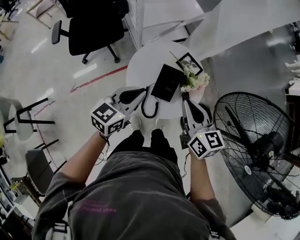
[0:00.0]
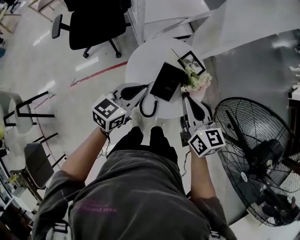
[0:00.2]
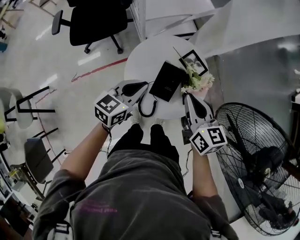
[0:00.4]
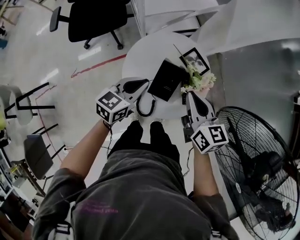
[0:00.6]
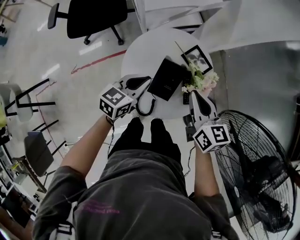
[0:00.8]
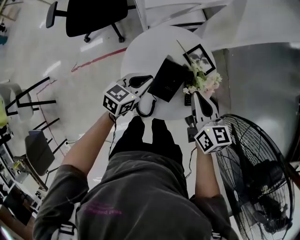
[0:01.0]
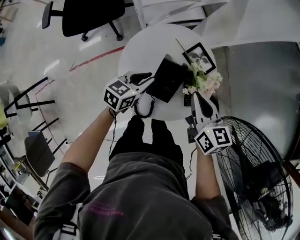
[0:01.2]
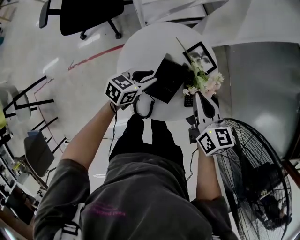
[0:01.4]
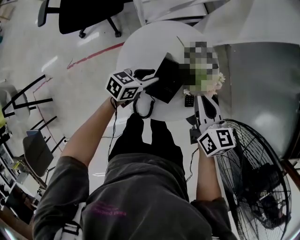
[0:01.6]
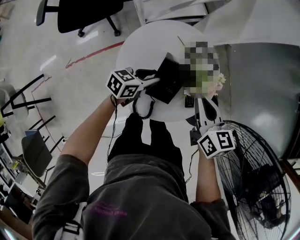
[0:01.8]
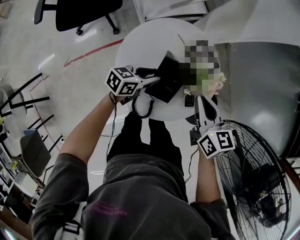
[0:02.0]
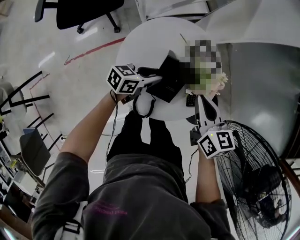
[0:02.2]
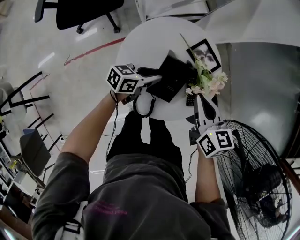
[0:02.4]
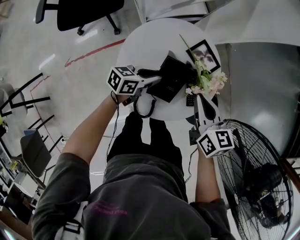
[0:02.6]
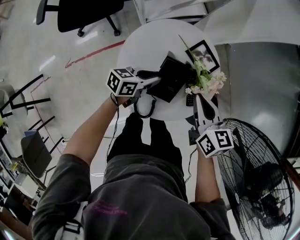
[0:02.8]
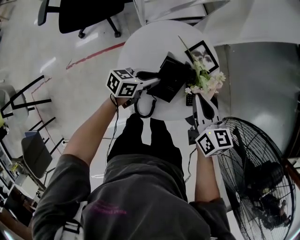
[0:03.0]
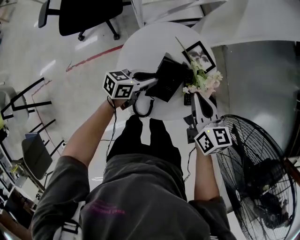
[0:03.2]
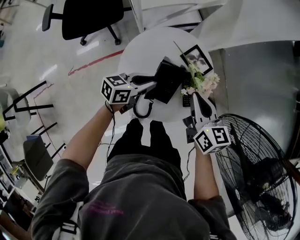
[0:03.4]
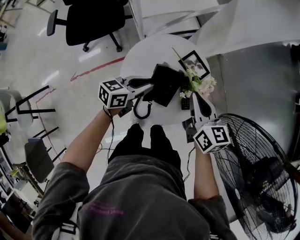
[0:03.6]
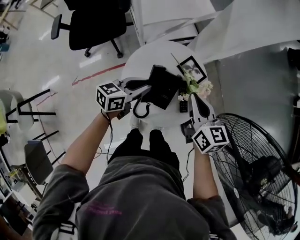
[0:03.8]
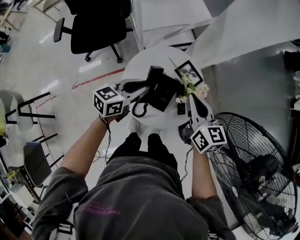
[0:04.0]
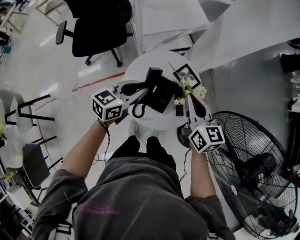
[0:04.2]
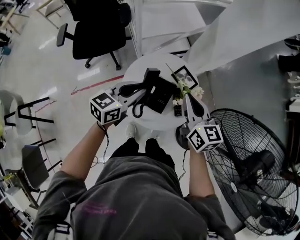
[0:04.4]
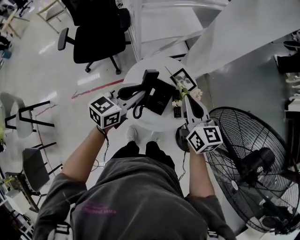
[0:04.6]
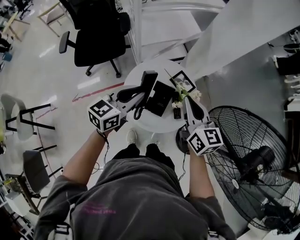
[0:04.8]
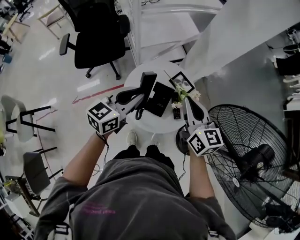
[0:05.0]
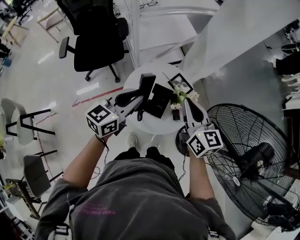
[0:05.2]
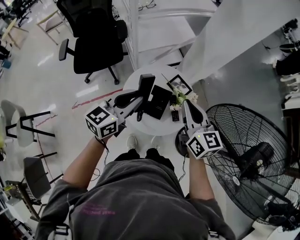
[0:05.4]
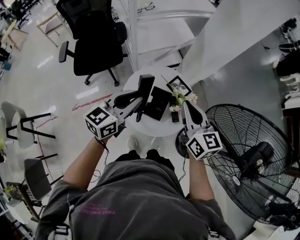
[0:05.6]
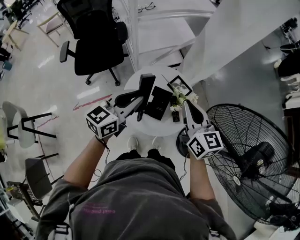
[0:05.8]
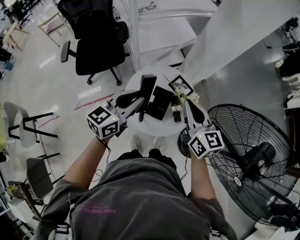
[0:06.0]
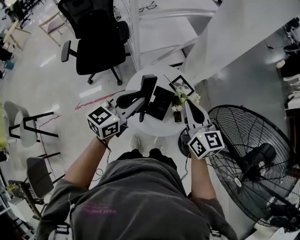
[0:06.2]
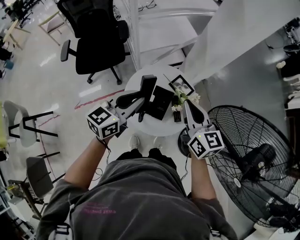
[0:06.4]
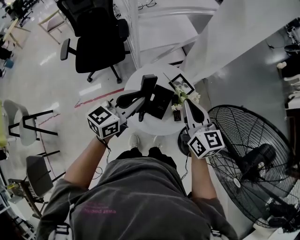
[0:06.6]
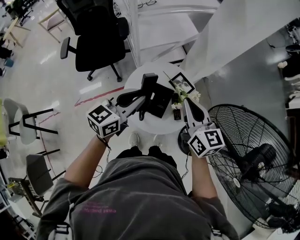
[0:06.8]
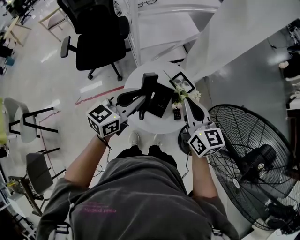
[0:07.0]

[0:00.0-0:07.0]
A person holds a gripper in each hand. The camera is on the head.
0:00.0 to 0:01.4: Both grippers travel together downward and forward, roughly 20 cm. The left gripper turns by roughly 20 degrees, and opens its fingers.
0:01.4 to 0:02.8: The grippers make only small movements.
0:02.8 to 0:04.2: The left gripper is displaced upward by roughly 20 cm, and rotates approximately 30 degrees. The right gripper travels upward by about 15 cm.
0:04.2 to 0:05.6: The two grippers go some 10 cm upward.
0:05.6 to 0:07.0: The grippers move only a little.

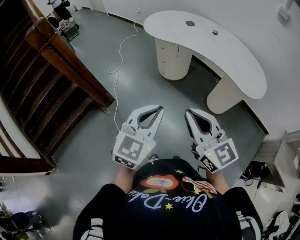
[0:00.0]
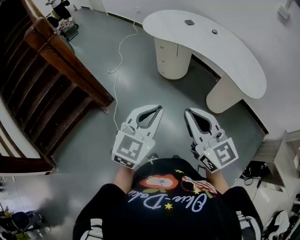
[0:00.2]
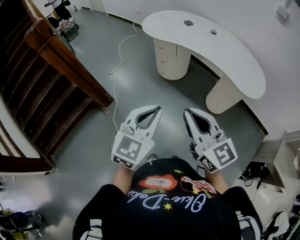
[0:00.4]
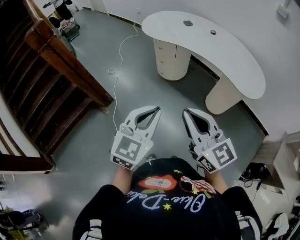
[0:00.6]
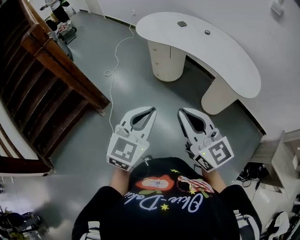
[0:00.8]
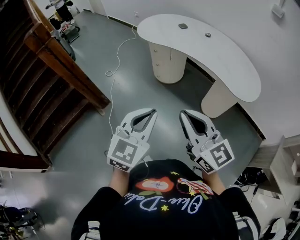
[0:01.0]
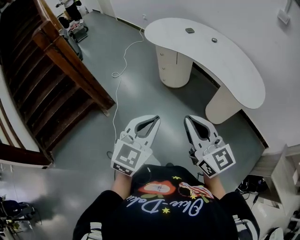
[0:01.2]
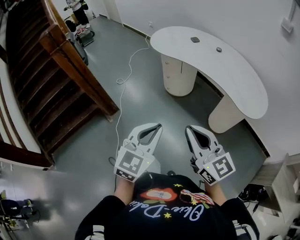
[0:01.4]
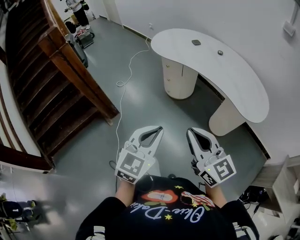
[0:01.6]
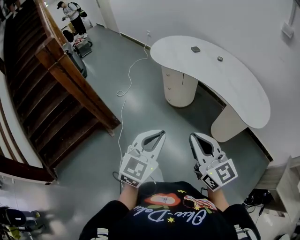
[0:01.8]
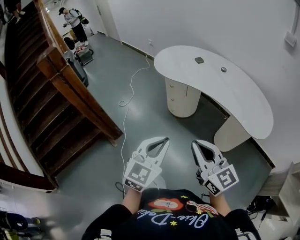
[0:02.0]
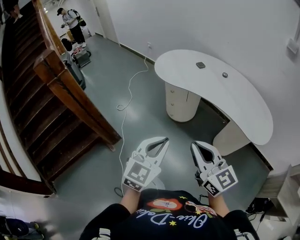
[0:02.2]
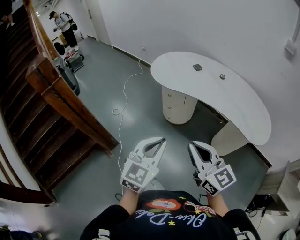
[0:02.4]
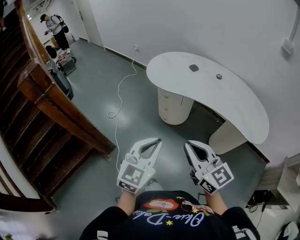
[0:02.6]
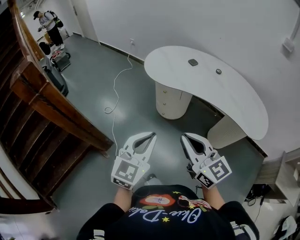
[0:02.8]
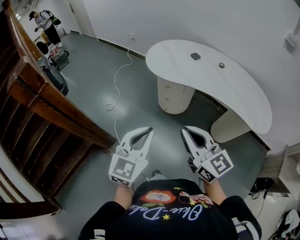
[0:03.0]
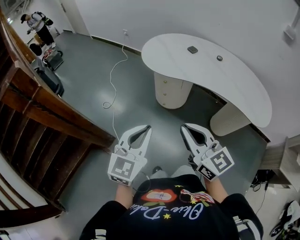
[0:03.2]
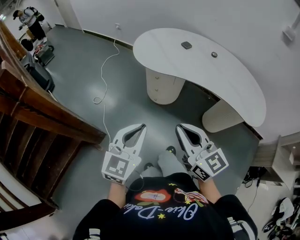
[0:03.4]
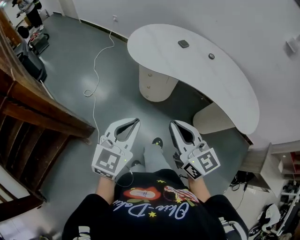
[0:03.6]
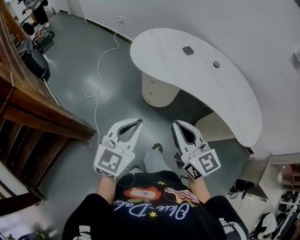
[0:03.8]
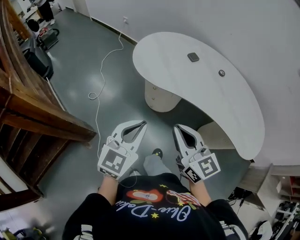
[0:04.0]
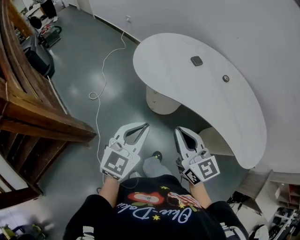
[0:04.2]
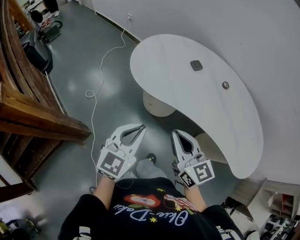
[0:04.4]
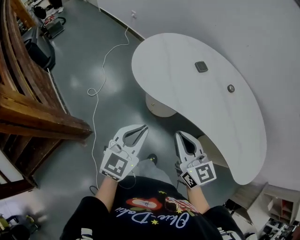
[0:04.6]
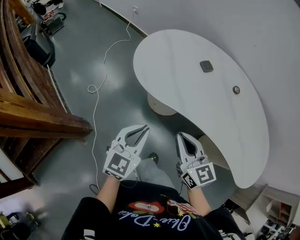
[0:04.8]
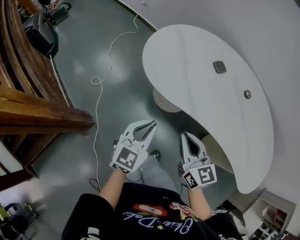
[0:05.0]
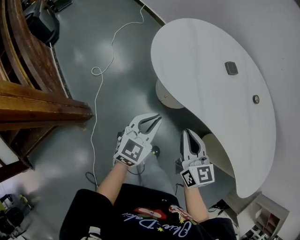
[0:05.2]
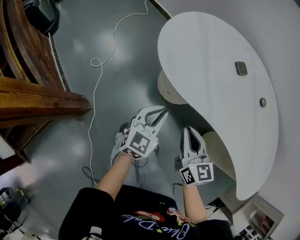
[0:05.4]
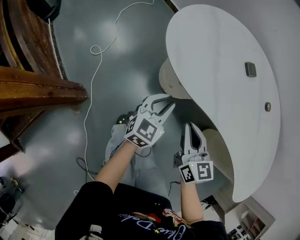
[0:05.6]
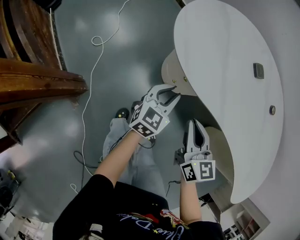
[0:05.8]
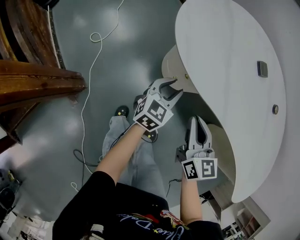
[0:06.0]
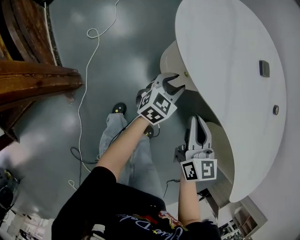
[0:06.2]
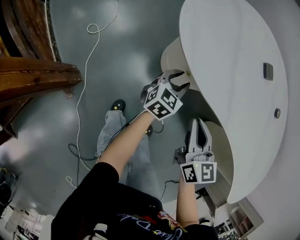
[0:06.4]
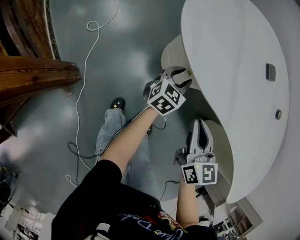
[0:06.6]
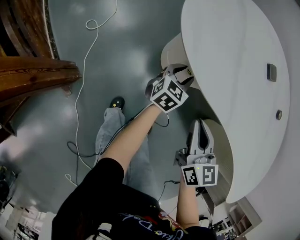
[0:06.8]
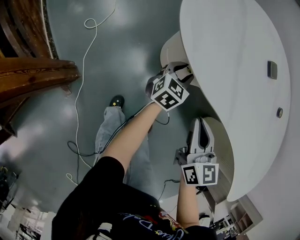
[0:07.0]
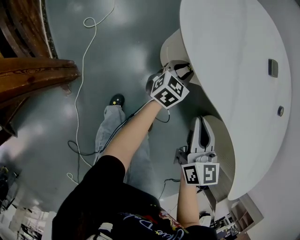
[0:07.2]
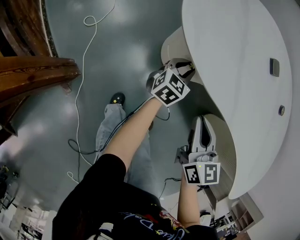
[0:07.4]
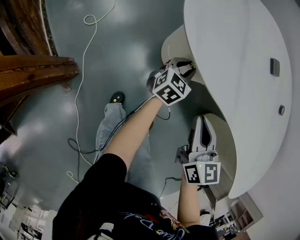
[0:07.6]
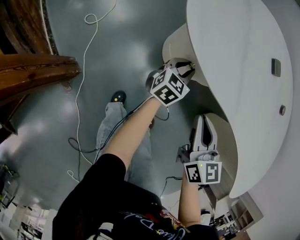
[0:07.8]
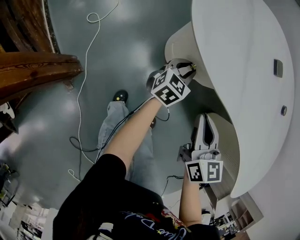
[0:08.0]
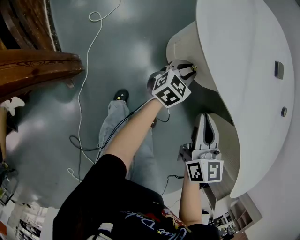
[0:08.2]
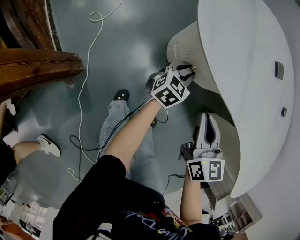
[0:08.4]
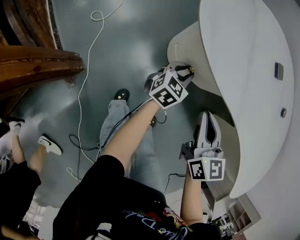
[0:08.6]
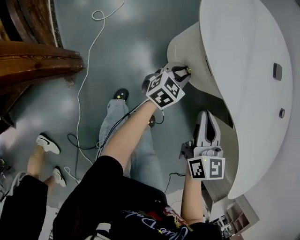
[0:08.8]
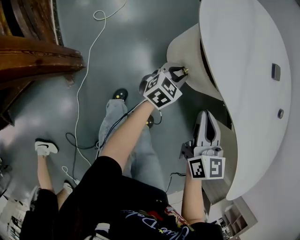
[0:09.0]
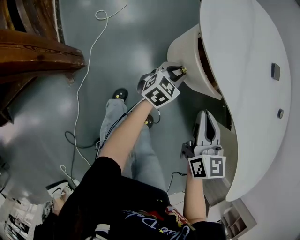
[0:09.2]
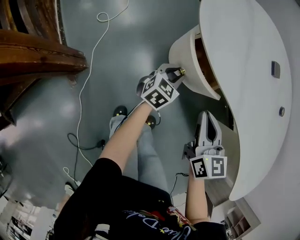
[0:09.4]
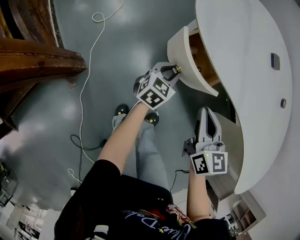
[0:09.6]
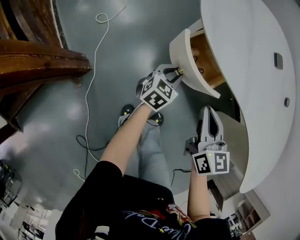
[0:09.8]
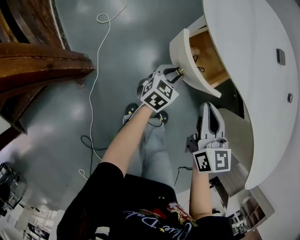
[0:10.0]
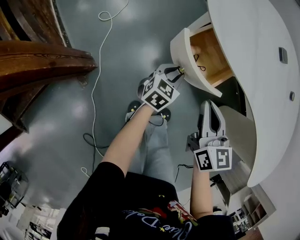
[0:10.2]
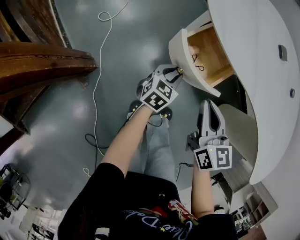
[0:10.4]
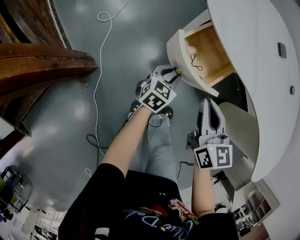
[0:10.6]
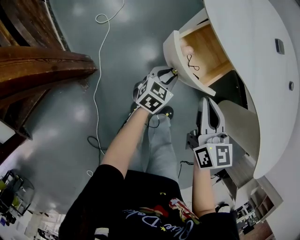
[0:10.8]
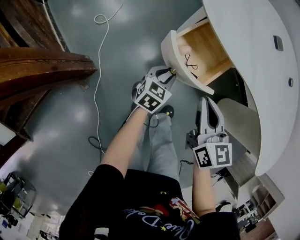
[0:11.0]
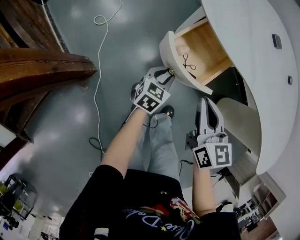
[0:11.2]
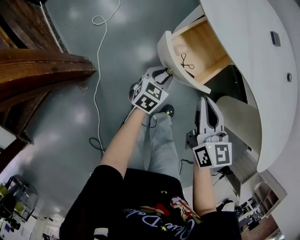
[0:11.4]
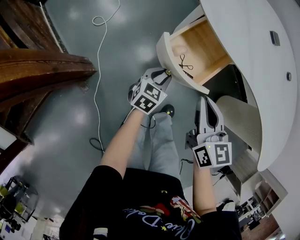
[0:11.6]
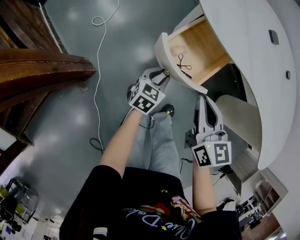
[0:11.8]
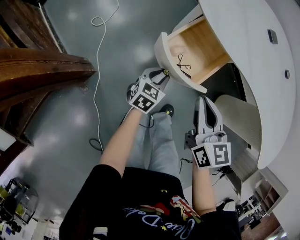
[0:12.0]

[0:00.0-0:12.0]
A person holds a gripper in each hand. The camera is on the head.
0:00.0 to 0:01.6: The two grippers go roughly 5 cm to the right.
0:01.6 to 0:03.0: Both grippers travel together forward and to the left, some 30 cm.
0:03.0 to 0:04.4: Both grippers travel together forward, about 25 cm.
0:04.4 to 0:06.0: The two grippers go some 30 cm downward and forward. The left gripper opens its fingers.
0:06.0 to 0:07.6: The left gripper moves downward and forward, roughly 10 cm.
0:07.6 to 0:09.0: The left gripper heads backward, covering some 5 cm.
0:09.0 to 0:10.4: The right gripper is displaced to the left by approximately 5 cm. Meanwhile the left gripper heads backward and to the left, covering some 10 cm.
0:10.4 to 0:12.0: The left gripper heads backward, covering approximately 5 cm; the right gripper ends up roughly 5 cm from where it was.

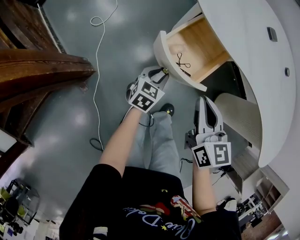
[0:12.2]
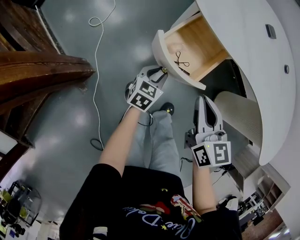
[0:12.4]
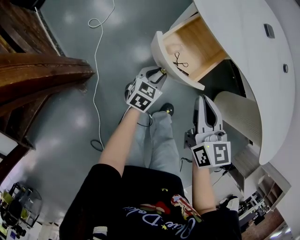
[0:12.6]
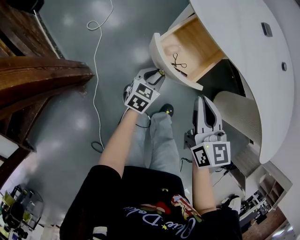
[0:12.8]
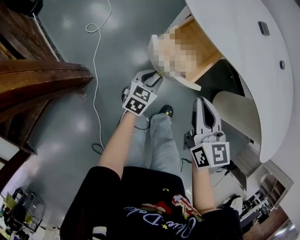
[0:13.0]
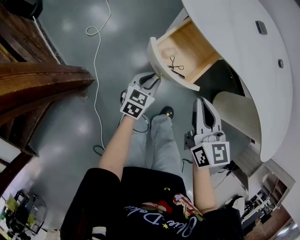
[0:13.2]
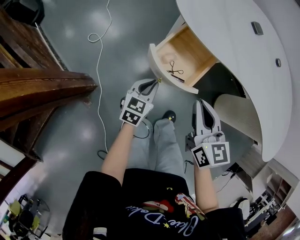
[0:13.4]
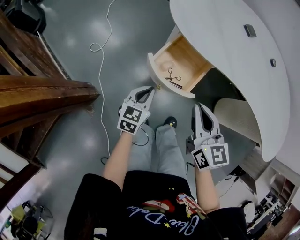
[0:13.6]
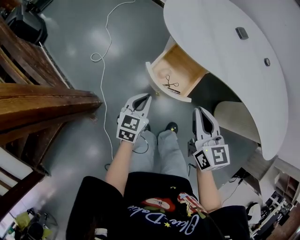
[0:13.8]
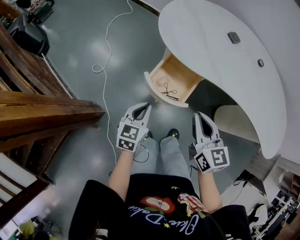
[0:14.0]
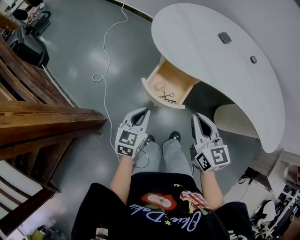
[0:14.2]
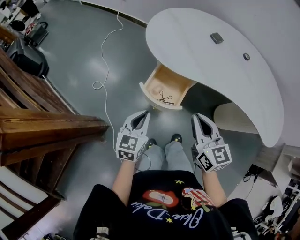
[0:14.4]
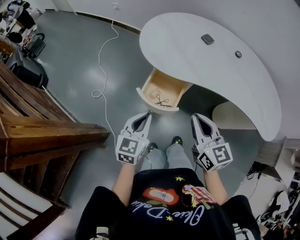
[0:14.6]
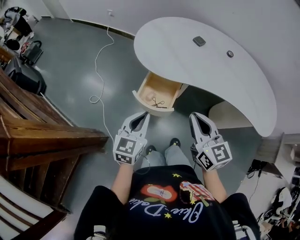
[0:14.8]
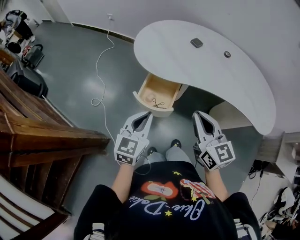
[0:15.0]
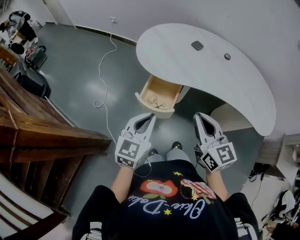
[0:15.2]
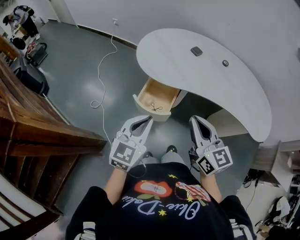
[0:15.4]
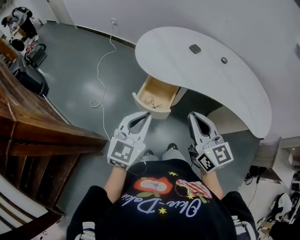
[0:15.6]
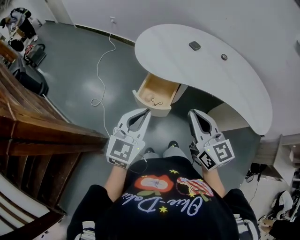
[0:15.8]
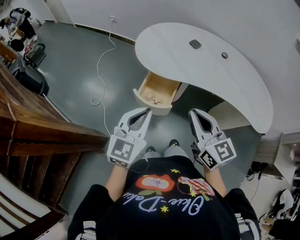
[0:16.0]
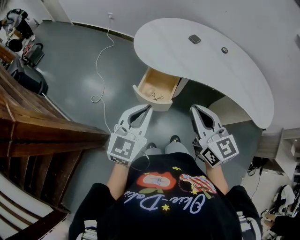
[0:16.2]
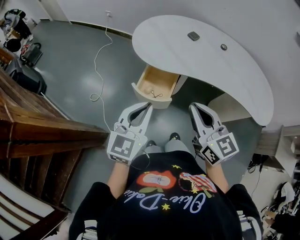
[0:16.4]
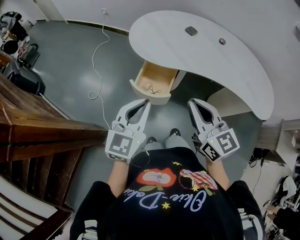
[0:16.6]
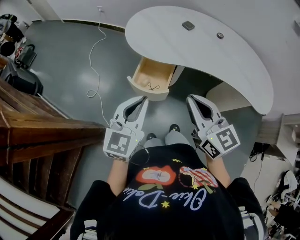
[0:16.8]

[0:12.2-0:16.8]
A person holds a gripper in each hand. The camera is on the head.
0:12.2 to 0:13.8: The right gripper shifts some 5 cm upward, while the left gripper moves upward, approximately 10 cm, and closes its fingers.
0:13.8 to 0:15.2: The grippers both shift upward by roughly 20 cm. The left gripper turns by approximately 20 degrees.
0:15.2 to 0:16.8: The grippers move only a little.
